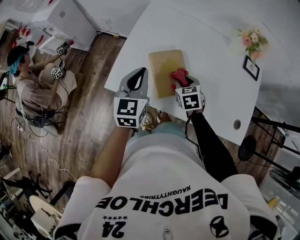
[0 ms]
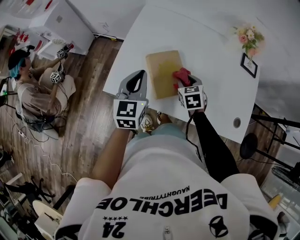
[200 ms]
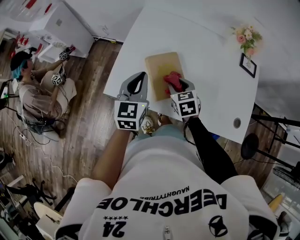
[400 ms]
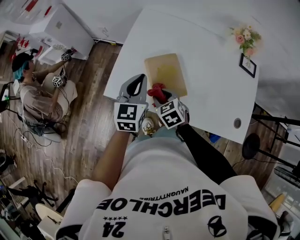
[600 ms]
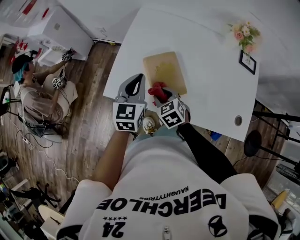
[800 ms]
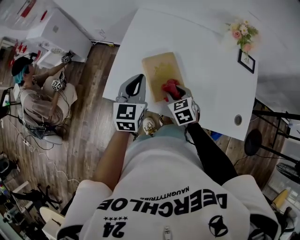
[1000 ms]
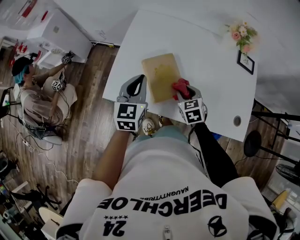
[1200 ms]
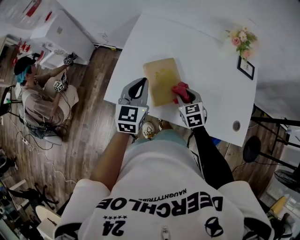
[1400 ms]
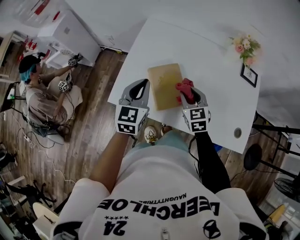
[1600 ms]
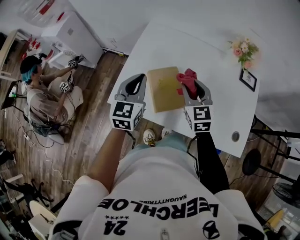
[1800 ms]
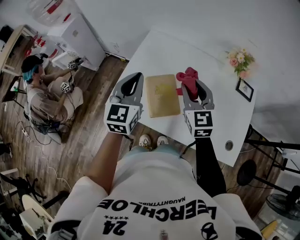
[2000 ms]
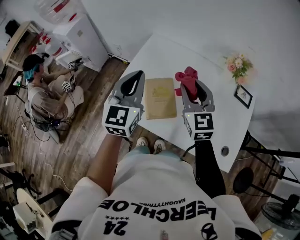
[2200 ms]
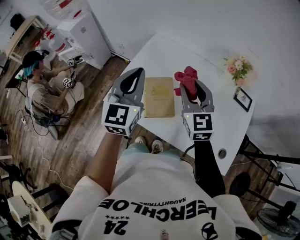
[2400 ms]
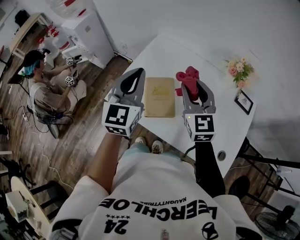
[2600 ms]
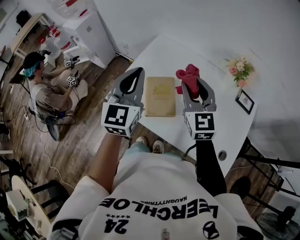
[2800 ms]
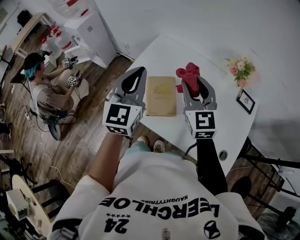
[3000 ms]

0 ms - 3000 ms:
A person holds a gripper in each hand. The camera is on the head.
0 ms - 1600 ms: The right gripper goes some 5 cm upward, and goes to the left and returns, approximately 10 cm each way.
1600 ms - 3000 ms: Both grippers travel together upward, about 20 cm. The left gripper changes its angle by some 20 degrees. Meanwhile the right gripper rotates approximately 30 degrees.

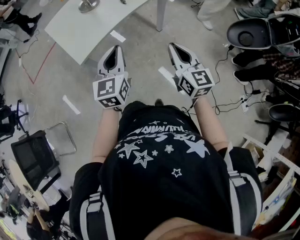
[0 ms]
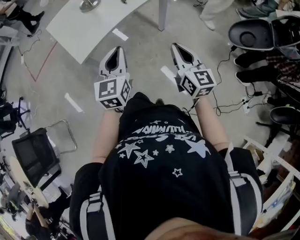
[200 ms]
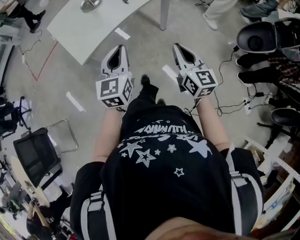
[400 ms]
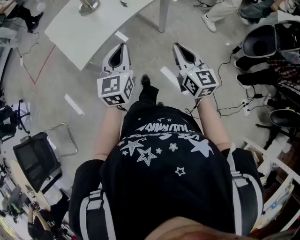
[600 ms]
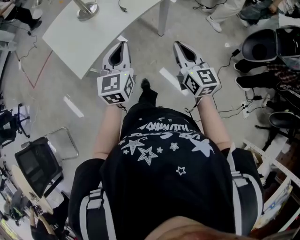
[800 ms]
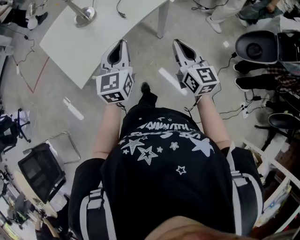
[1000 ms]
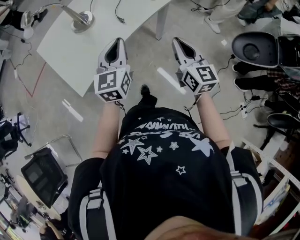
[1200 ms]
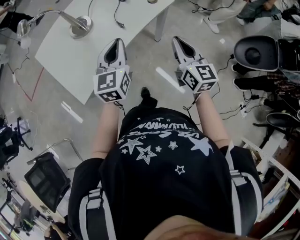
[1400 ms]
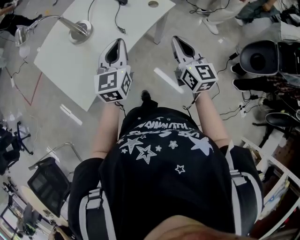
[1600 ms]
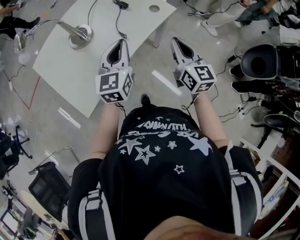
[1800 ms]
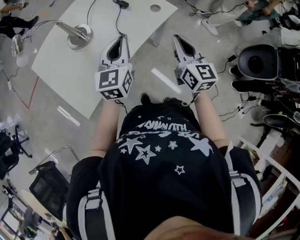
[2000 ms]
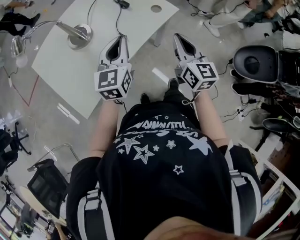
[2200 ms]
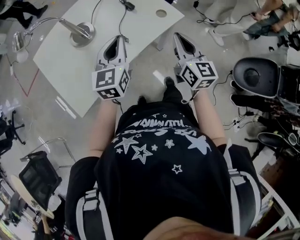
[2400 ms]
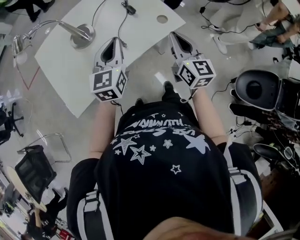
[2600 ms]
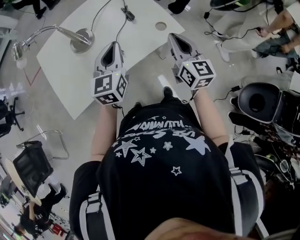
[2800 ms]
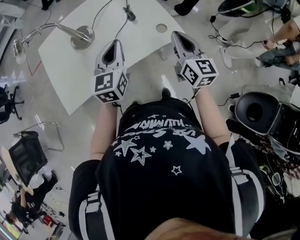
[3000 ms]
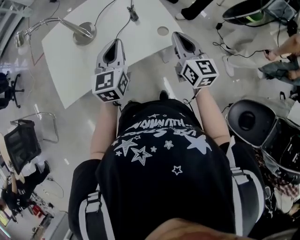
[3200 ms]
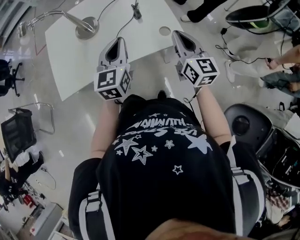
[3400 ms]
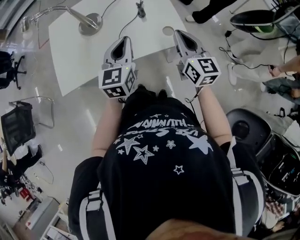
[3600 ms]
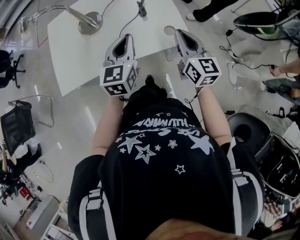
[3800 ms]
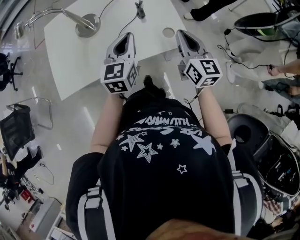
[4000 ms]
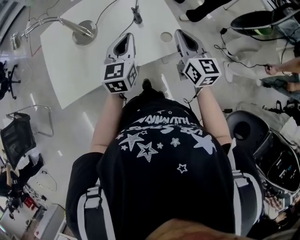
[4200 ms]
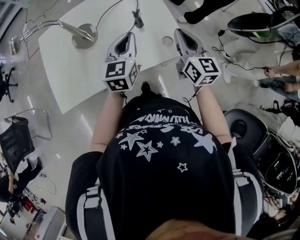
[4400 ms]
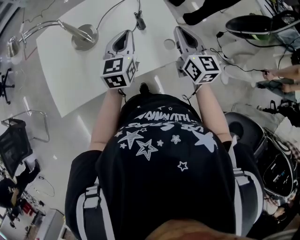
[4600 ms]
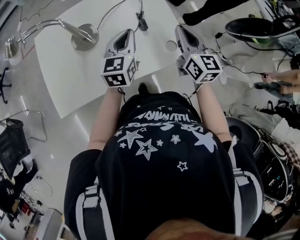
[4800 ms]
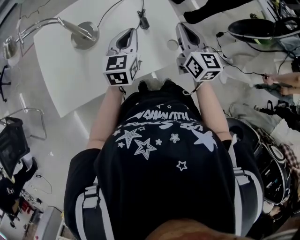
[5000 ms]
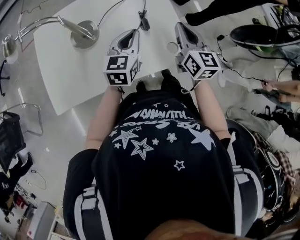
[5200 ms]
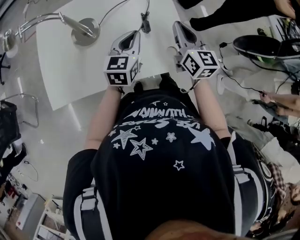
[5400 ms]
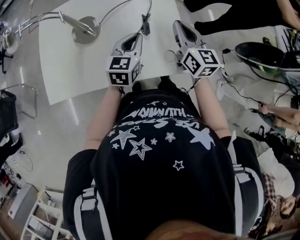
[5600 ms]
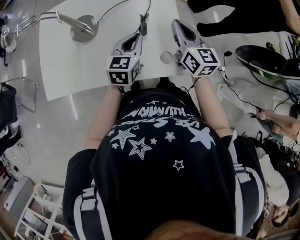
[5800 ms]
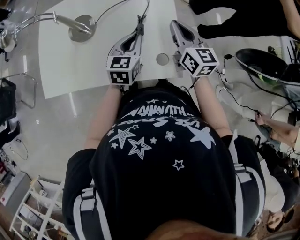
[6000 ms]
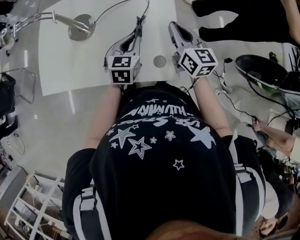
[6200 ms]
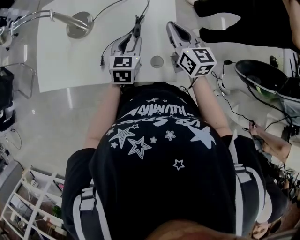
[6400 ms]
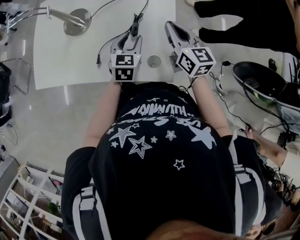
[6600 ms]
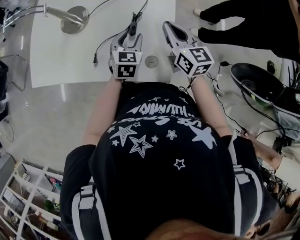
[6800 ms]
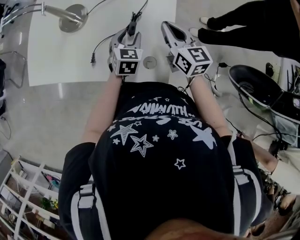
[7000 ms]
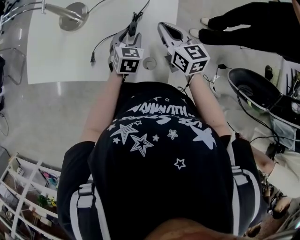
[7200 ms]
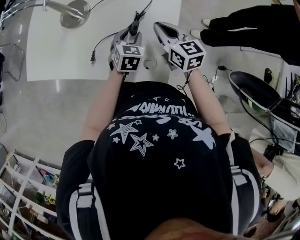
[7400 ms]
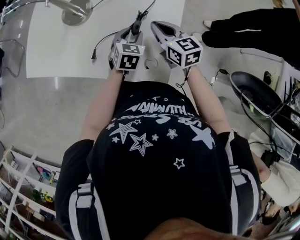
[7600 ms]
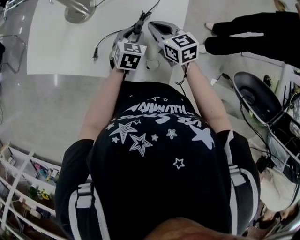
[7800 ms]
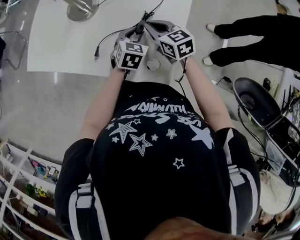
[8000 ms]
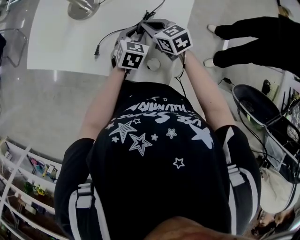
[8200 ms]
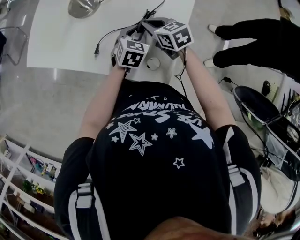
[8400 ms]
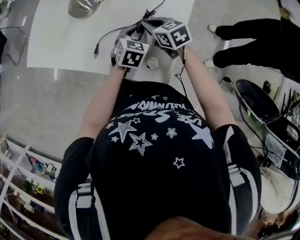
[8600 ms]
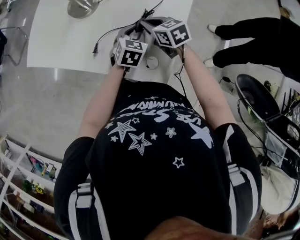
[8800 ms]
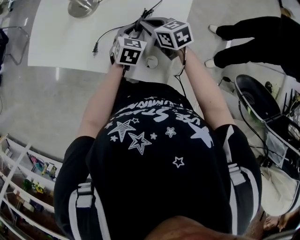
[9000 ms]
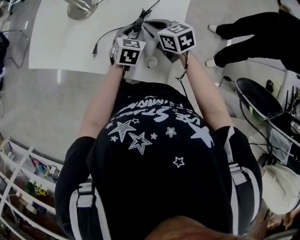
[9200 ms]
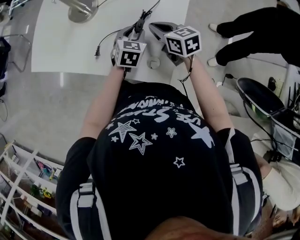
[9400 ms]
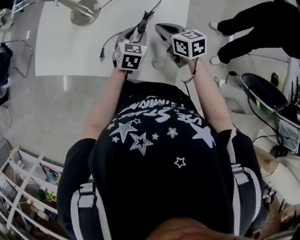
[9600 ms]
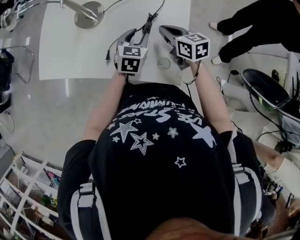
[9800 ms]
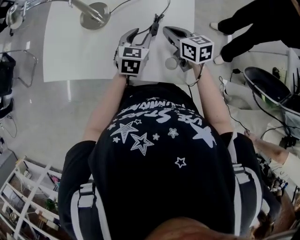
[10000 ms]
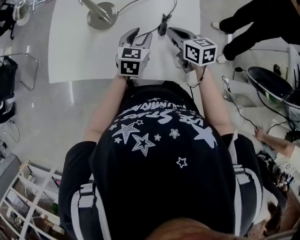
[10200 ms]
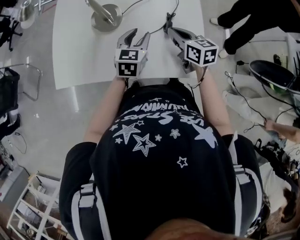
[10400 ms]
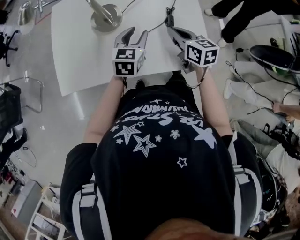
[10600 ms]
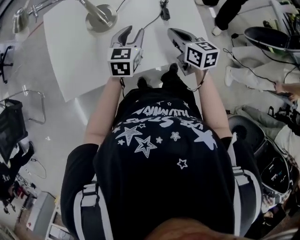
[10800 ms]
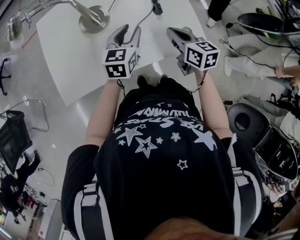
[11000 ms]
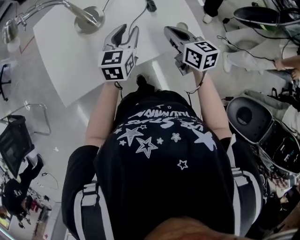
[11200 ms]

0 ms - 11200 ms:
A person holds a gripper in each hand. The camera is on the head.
0 ms - 1600 ms: The grippers both shift forward by roughly 25 cm.
1600 ms - 3200 ms: The right gripper ends up some 25 cm from where it was, and changes its angle by some 20 degrees; the left gripper changes place by about 15 cm, and turns by approximately 30 degrees.
3200 ms - 4800 ms: The two grippers go some 15 cm forward.
4800 ms - 6400 ms: The right gripper shifts some 15 cm forward and downward, and rotates about 30 degrees; the left gripper is displaced downward and to the right by roughly 15 cm, changes its angle by about 20 degrees, and opens up.
6400 ms - 8000 ms: The left gripper travels downward by roughly 10 cm, while the right gripper goes roughly 15 cm downward, to the left and forward, and changes its angle by some 40 degrees.
8000 ms - 9600 ms: There are only small adjustments of the grippers.
9600 ms - 11200 ms: The left gripper moves approximately 20 cm, and rotates about 30 degrees. The right gripper changes place by about 20 cm, and turns by approximately 40 degrees.

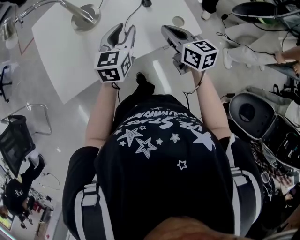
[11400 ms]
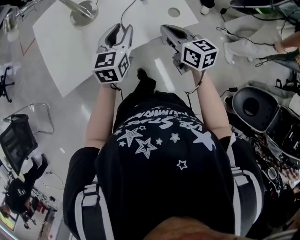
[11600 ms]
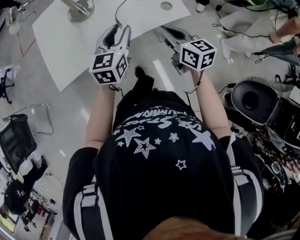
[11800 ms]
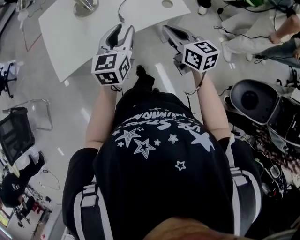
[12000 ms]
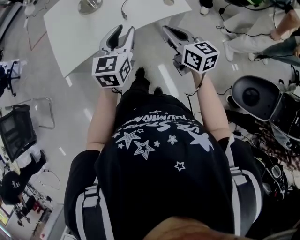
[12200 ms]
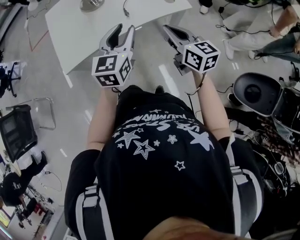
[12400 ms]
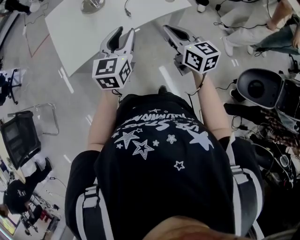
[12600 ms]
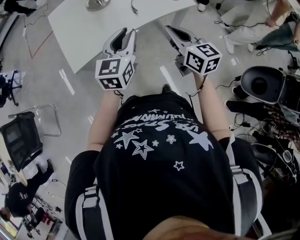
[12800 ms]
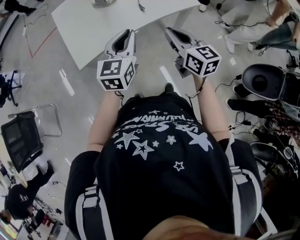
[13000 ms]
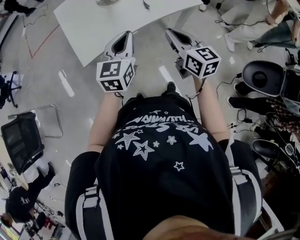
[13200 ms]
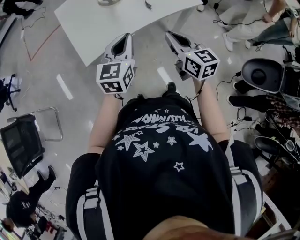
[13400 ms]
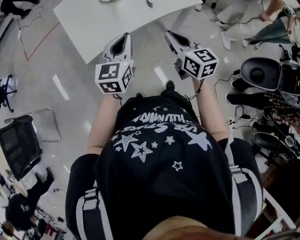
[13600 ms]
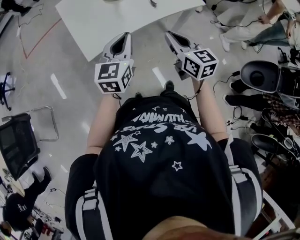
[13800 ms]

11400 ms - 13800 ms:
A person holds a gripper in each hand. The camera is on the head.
11400 ms - 12600 ms: The two grippers go about 20 cm backward.
12600 ms - 13800 ms: The left gripper moves to the left, approximately 10 cm, and closes its fingers. Meanwhile the right gripper shifts some 15 cm to the left and backward.

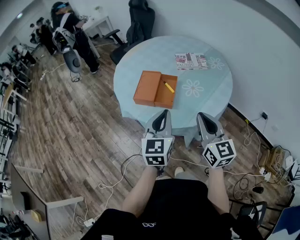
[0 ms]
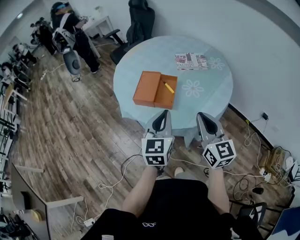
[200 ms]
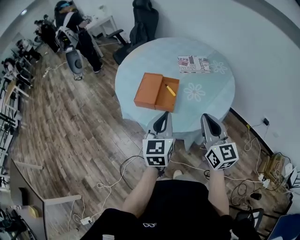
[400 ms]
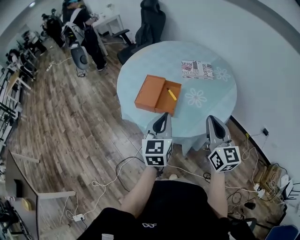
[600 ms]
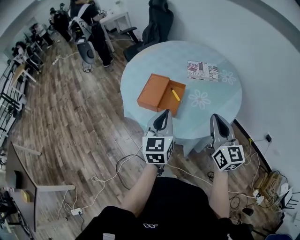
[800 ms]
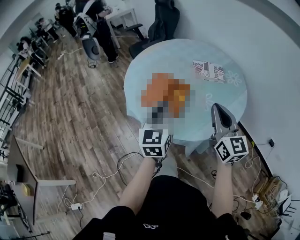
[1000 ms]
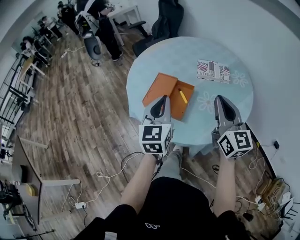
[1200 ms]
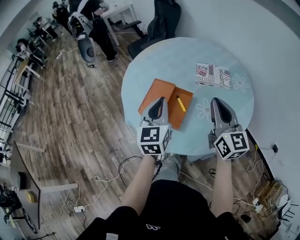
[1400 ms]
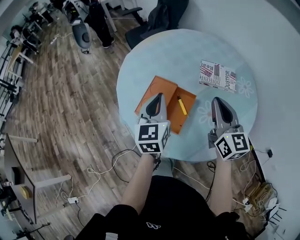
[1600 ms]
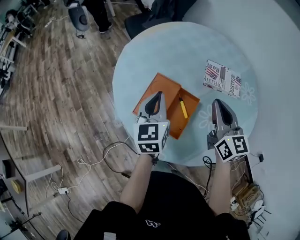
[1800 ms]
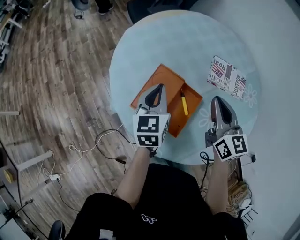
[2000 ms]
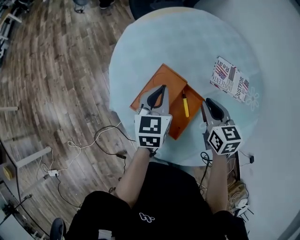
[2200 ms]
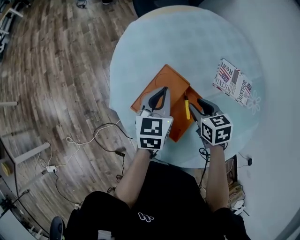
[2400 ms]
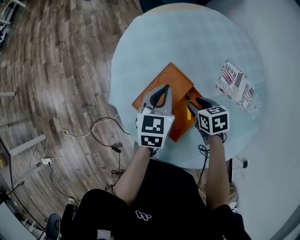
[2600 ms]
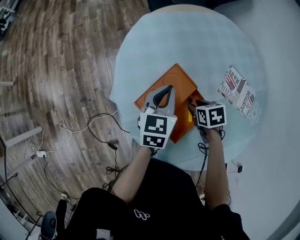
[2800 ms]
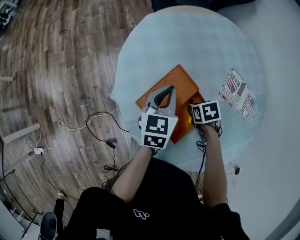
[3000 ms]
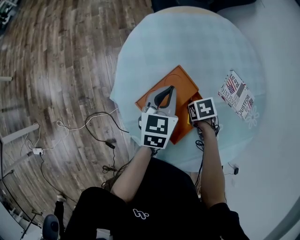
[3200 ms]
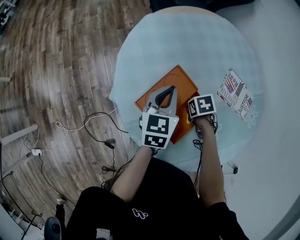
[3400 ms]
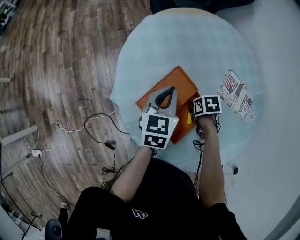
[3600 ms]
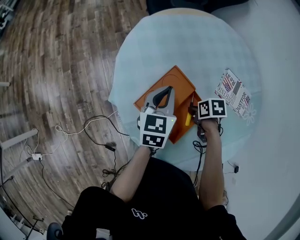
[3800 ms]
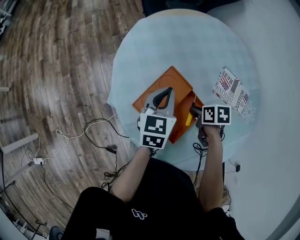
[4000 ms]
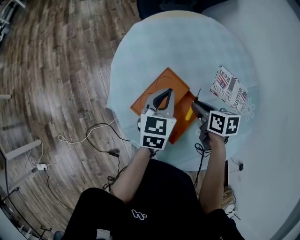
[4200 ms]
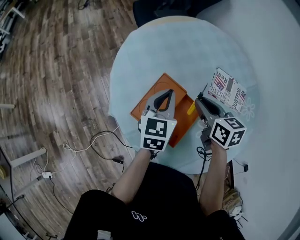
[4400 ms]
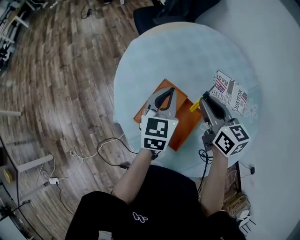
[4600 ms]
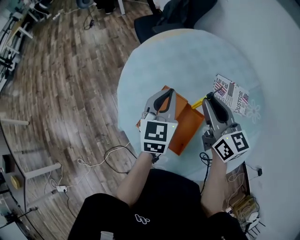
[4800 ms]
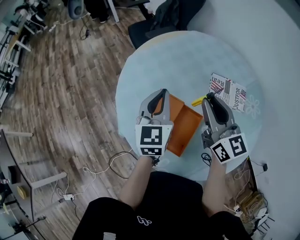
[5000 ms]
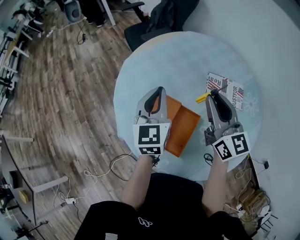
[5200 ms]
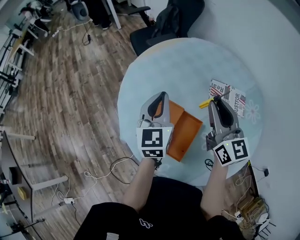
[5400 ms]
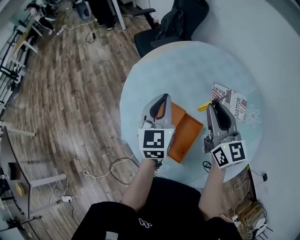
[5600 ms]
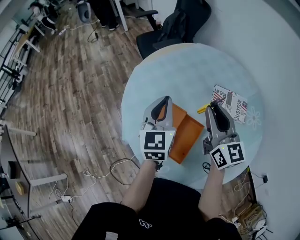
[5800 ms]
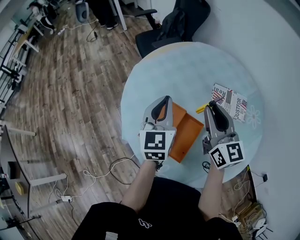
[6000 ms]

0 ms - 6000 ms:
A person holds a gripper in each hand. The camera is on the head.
0 ms - 1600 ms: The grippers both shift forward by some 30 cm.
1600 ms - 3000 ms: The right gripper moves downward, roughly 30 cm, tilts its fingers approximately 80 degrees downward, and opens up, while the left gripper moves downward, roughly 15 cm.
3000 ms - 4400 ms: The right gripper moves upward, some 20 cm, and tilts its fingers some 40 degrees upward. The left gripper shifts by roughly 5 cm.
4400 ms - 6000 ms: The grippers both shift upward by approximately 10 cm. The right gripper tilts its fingers some 40 degrees upward.
